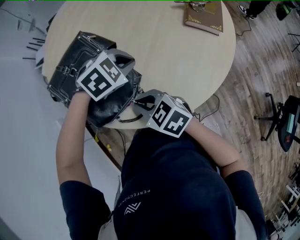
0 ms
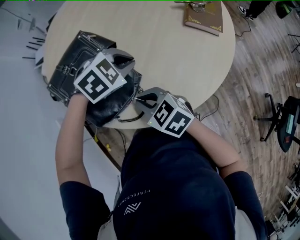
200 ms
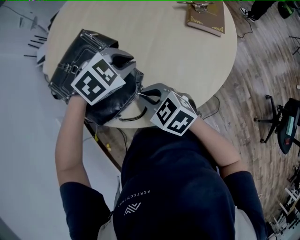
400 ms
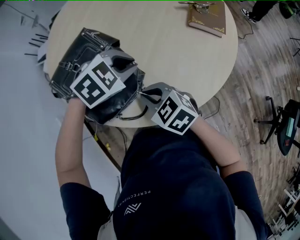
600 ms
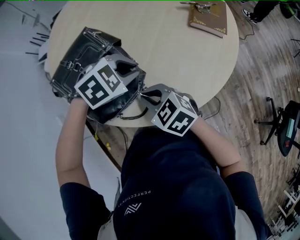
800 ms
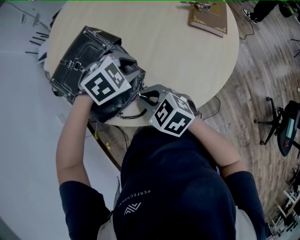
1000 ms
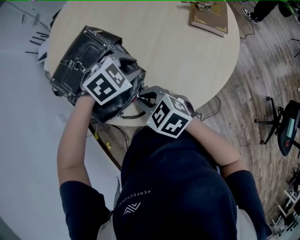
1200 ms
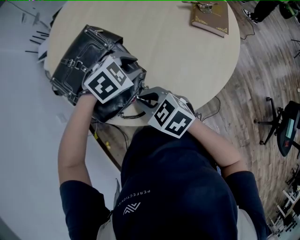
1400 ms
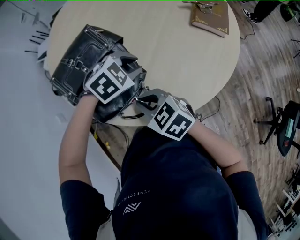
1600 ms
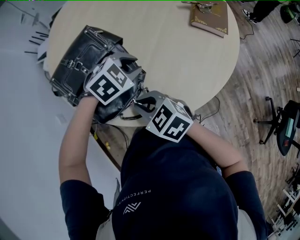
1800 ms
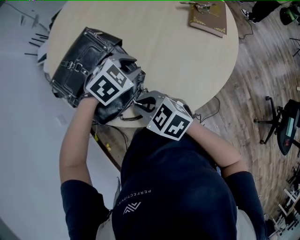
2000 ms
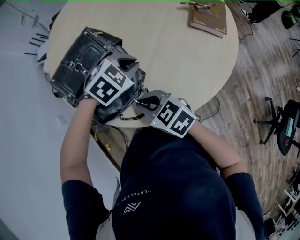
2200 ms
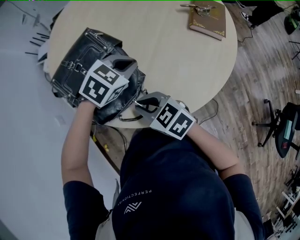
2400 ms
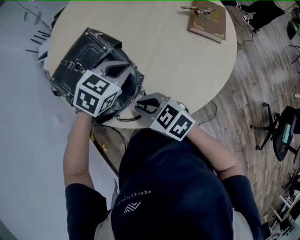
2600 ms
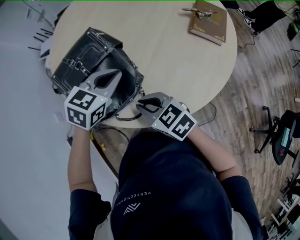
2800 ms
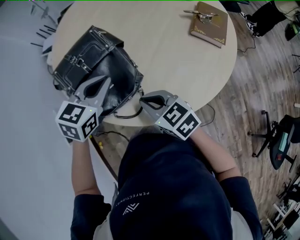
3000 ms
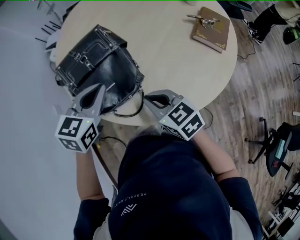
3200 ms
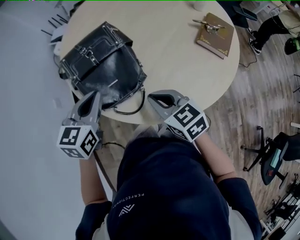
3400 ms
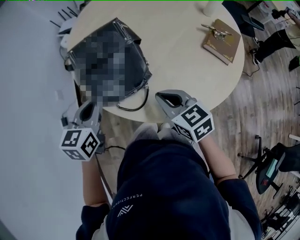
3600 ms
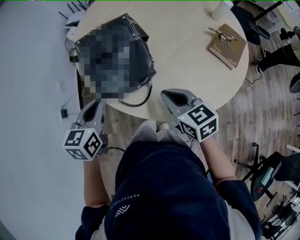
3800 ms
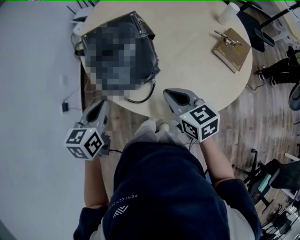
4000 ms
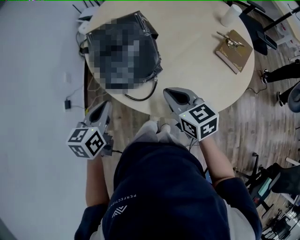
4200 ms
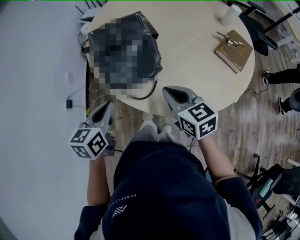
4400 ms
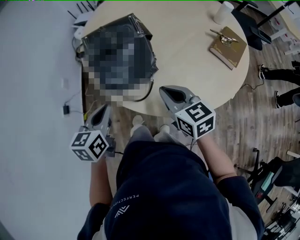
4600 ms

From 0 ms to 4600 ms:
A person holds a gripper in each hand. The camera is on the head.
From 0 ms to 1600 ms: The left gripper opens.
From 1600 ms to 3000 ms: The left gripper moves to the left and upward, some 10 cm, turns by about 40 degrees, and closes up.
From 3000 ms to 4600 ms: The left gripper goes roughly 20 cm backward and to the left, and swivels about 40 degrees. The right gripper ends up some 5 cm from where it was.

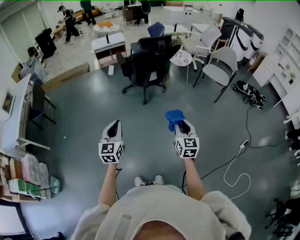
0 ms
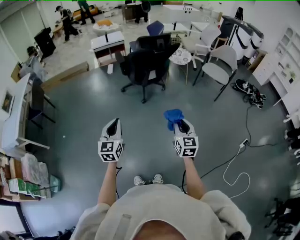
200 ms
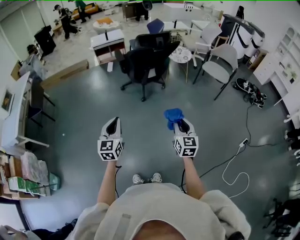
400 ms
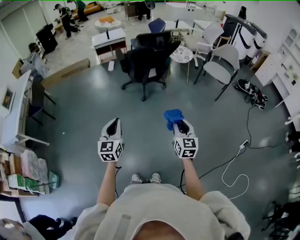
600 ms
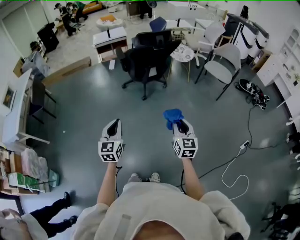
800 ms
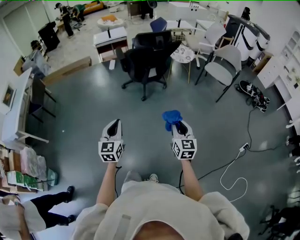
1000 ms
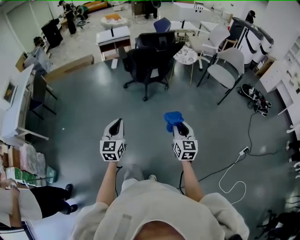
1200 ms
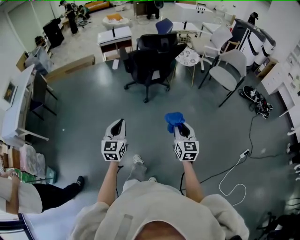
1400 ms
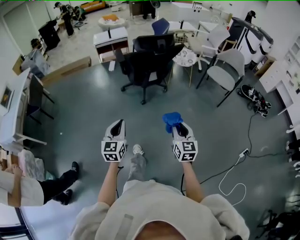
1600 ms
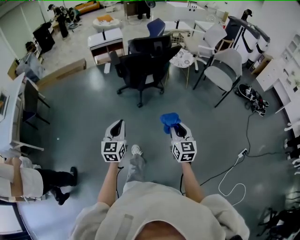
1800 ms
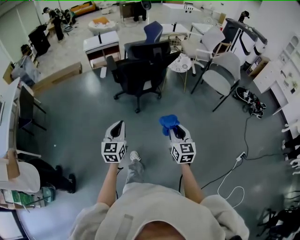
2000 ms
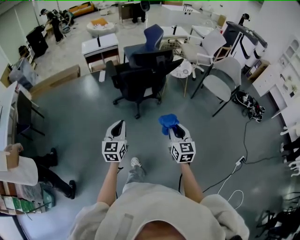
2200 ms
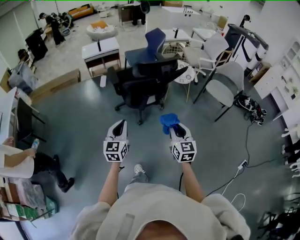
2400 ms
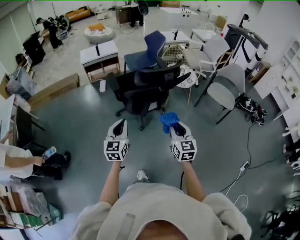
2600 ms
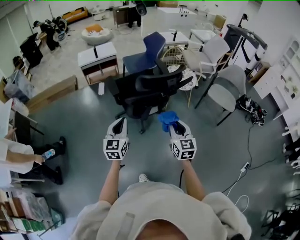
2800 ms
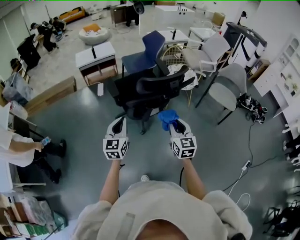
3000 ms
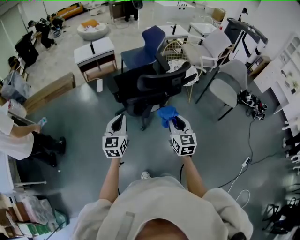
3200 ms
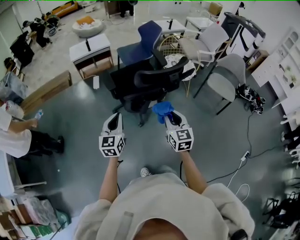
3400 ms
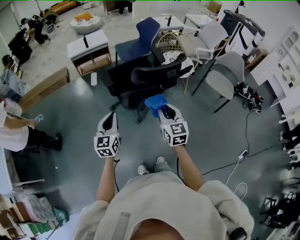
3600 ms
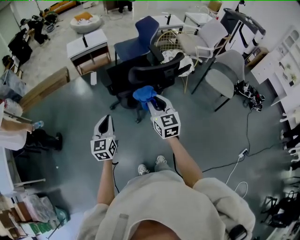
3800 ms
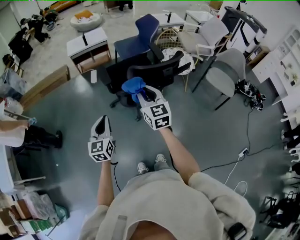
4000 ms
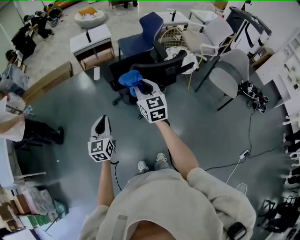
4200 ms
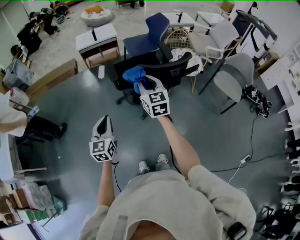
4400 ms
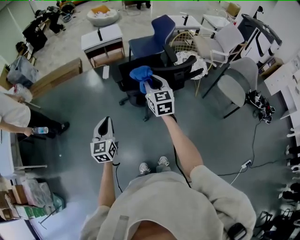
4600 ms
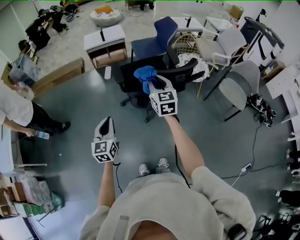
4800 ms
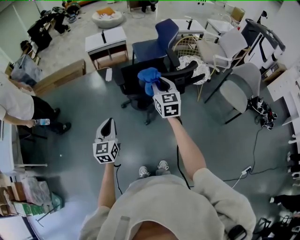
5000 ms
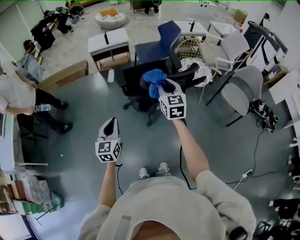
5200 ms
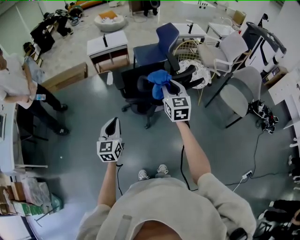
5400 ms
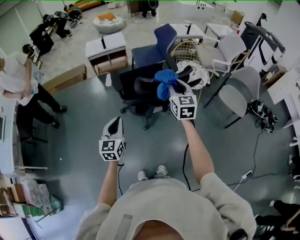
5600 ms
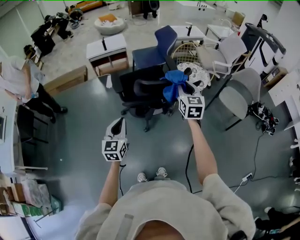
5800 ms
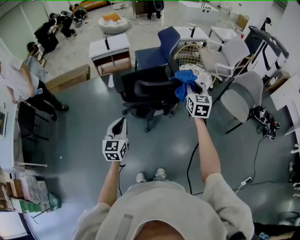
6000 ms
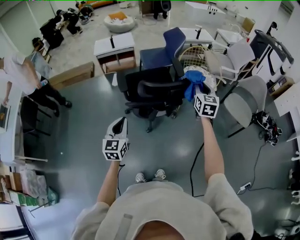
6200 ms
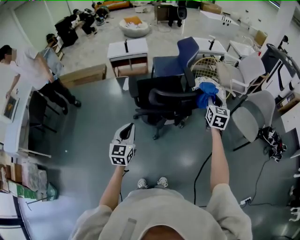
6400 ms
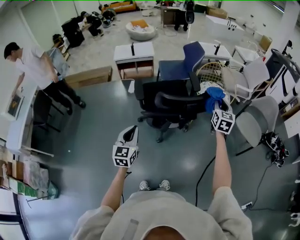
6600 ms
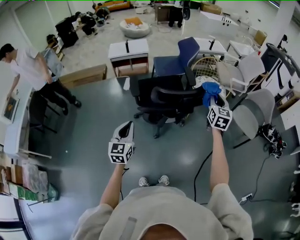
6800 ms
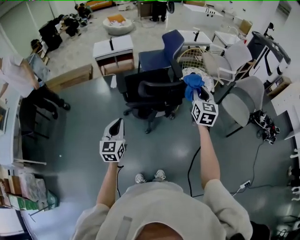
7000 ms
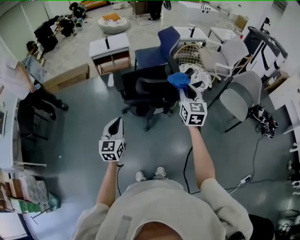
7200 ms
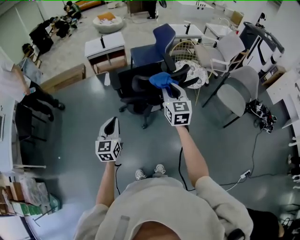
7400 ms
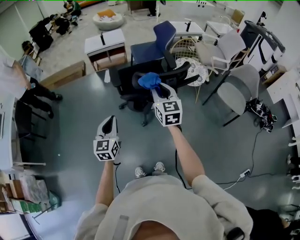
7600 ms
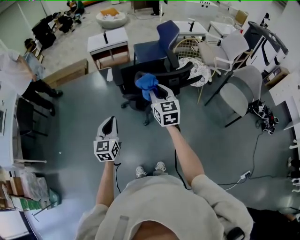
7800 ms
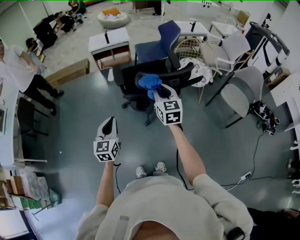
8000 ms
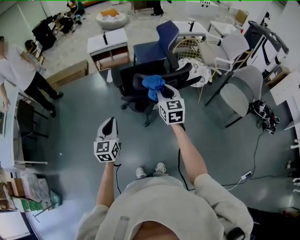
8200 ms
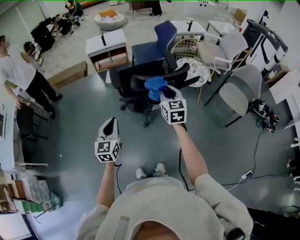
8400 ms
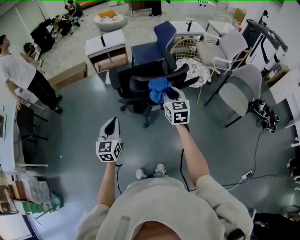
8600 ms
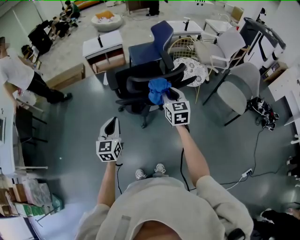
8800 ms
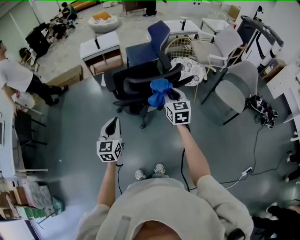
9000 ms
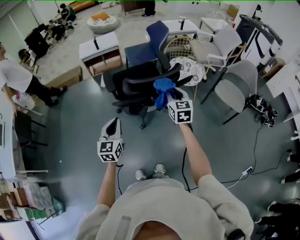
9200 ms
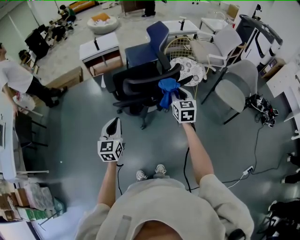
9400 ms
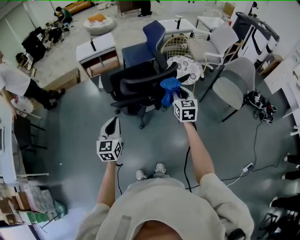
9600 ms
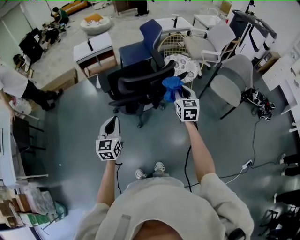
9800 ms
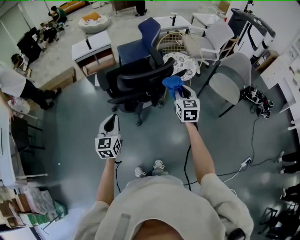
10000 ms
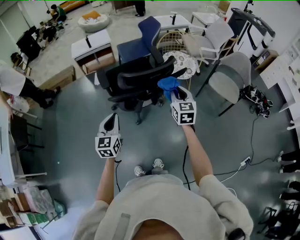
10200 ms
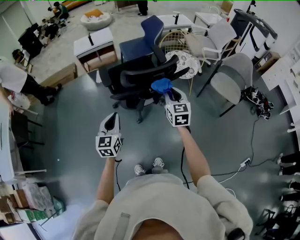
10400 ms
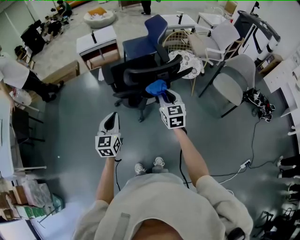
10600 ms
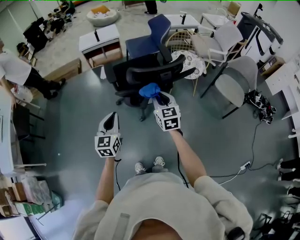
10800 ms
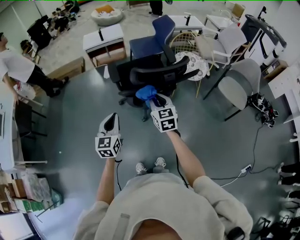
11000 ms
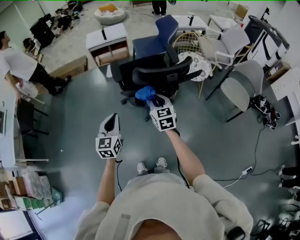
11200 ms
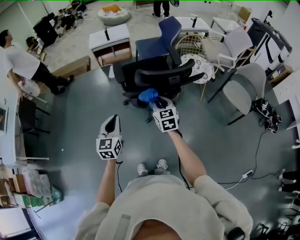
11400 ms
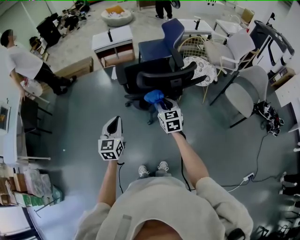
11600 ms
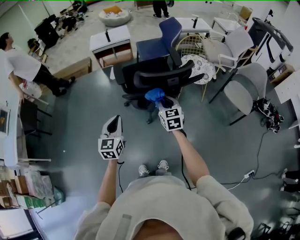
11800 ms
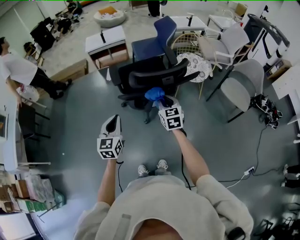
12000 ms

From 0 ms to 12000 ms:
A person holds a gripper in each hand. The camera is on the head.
From 0 ms to 1600 ms: The right gripper goes about 10 cm forward. The left gripper is displaced forward and to the right by roughly 10 cm.
From 1600 ms to 3000 ms: The two grippers travel together, forward, approximately 40 cm.
From 3000 ms to 4400 ms: The left gripper heads to the left, covering about 5 cm. The right gripper travels forward and to the left by roughly 20 cm.
From 4400 ms to 6000 ms: The right gripper heads to the right, covering about 25 cm, while the left gripper heads to the right, covering roughly 10 cm.
From 6000 ms to 7600 ms: The right gripper moves to the left and backward, approximately 20 cm. The left gripper ends up some 5 cm from where it was.
From 7600 ms to 9000 ms: The left gripper heads to the right, covering roughly 5 cm; the right gripper shifts some 10 cm to the right and downward.
From 9000 ms to 10400 ms: The right gripper travels to the right and back again, roughly 10 cm each way.
From 10400 ms to 12000 ms: The right gripper goes some 10 cm to the left and downward.

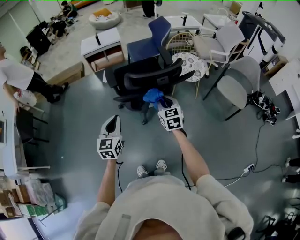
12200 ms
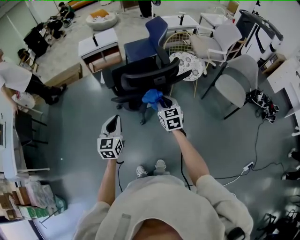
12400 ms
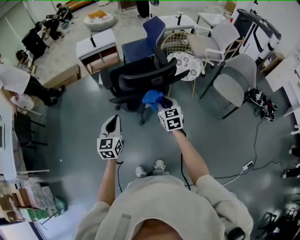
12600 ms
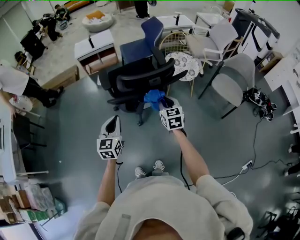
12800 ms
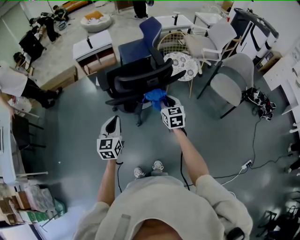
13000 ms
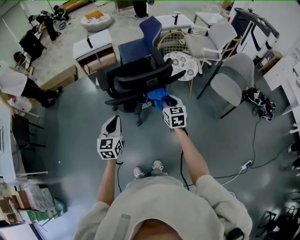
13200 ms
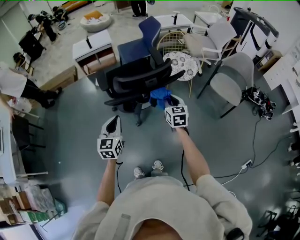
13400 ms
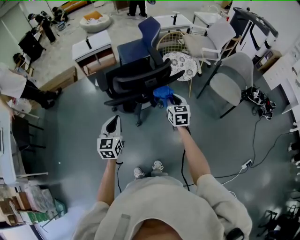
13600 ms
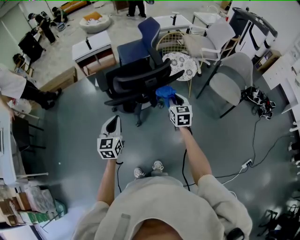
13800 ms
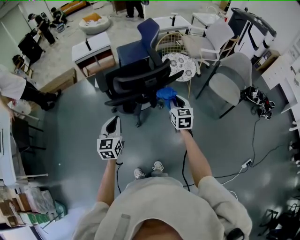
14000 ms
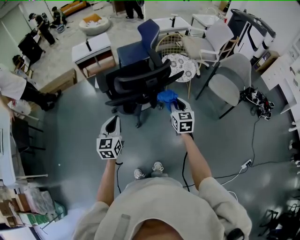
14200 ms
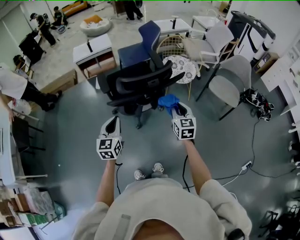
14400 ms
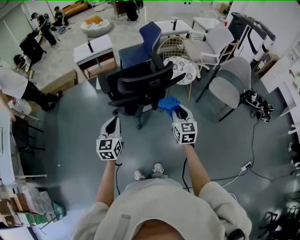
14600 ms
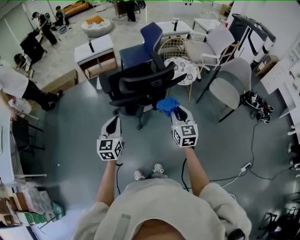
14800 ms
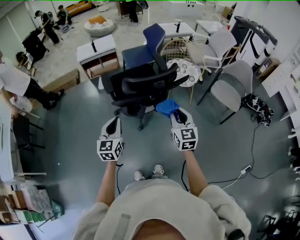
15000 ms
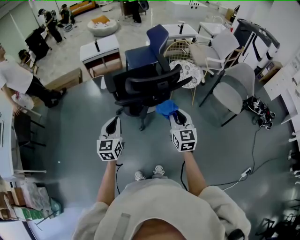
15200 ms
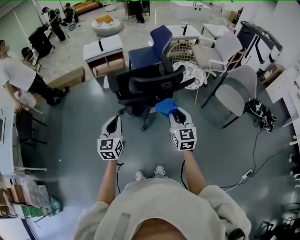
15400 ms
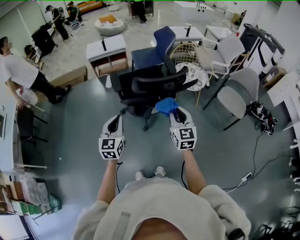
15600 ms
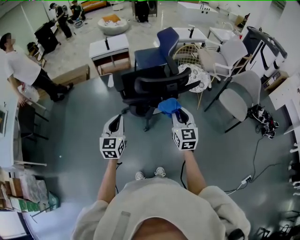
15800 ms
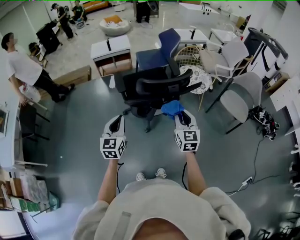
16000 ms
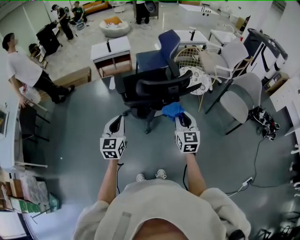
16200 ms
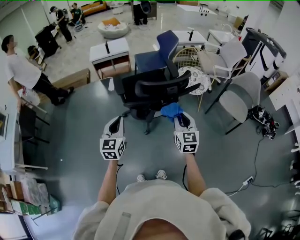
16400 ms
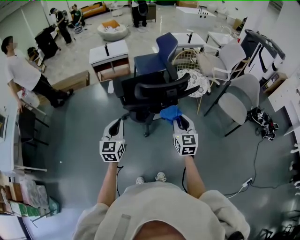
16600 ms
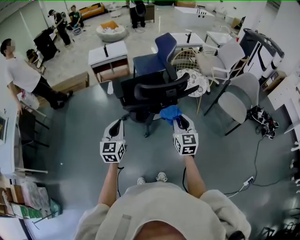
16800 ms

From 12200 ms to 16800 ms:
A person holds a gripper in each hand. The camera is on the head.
From 12200 ms to 13800 ms: The left gripper shifts approximately 5 cm to the right; the right gripper moves to the right, approximately 15 cm.
From 13800 ms to 15200 ms: The right gripper is displaced backward, upward and to the left by some 15 cm. The left gripper heads to the left, covering some 5 cm.
From 15200 ms to 16800 ms: The grippers make only small movements.

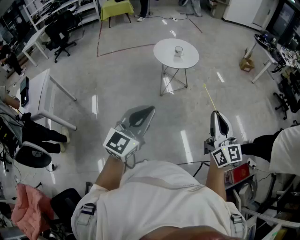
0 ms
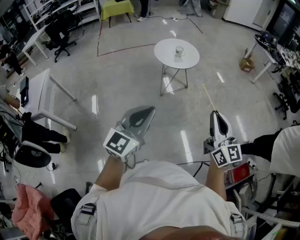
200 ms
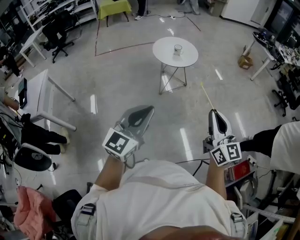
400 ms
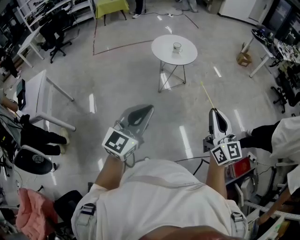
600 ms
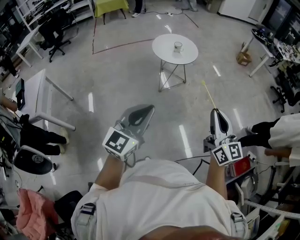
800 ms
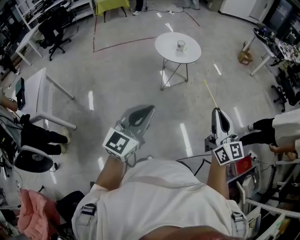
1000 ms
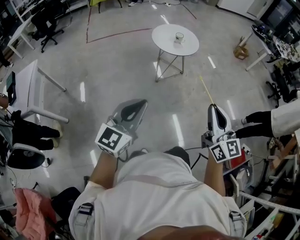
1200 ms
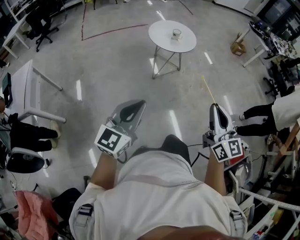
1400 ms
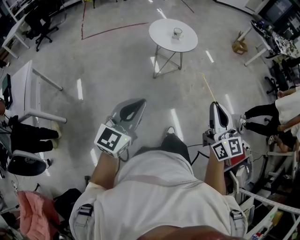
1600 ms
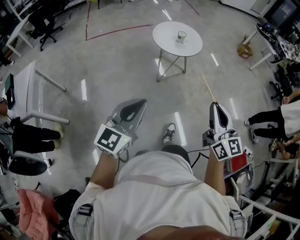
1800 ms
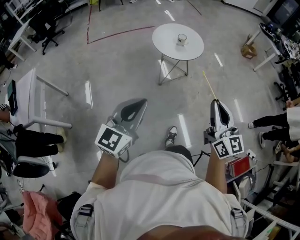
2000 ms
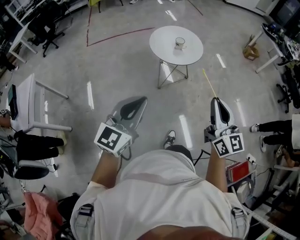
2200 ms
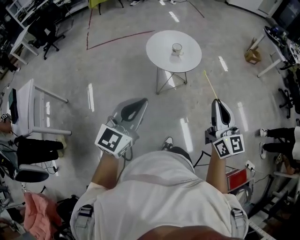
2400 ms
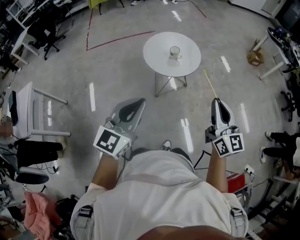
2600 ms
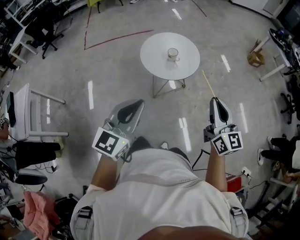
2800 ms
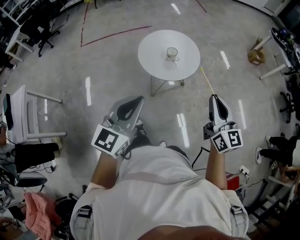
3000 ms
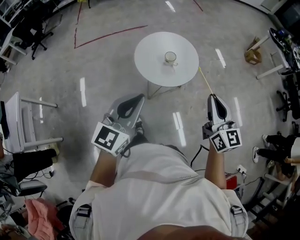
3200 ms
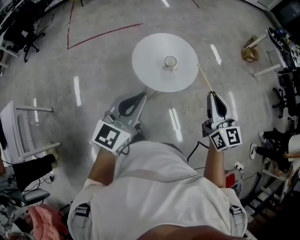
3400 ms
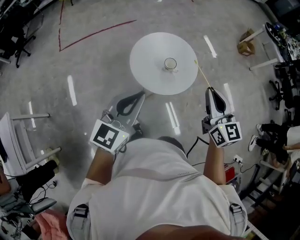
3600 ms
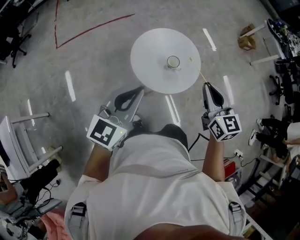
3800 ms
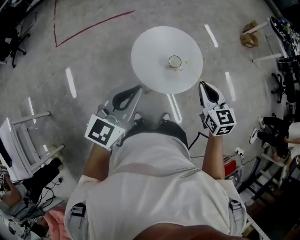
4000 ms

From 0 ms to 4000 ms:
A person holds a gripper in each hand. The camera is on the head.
From 0 ms to 1400 ms: The left gripper moves to the left and downward, approximately 15 cm. Meanwhile the right gripper shifts approximately 10 cm to the left.
From 1400 ms to 2600 ms: Both grippers move forward, some 40 cm.
From 2600 ms to 4000 ms: The two grippers travel together, forward and to the left, about 50 cm. The right gripper points its fingers some 30 degrees further downward.
